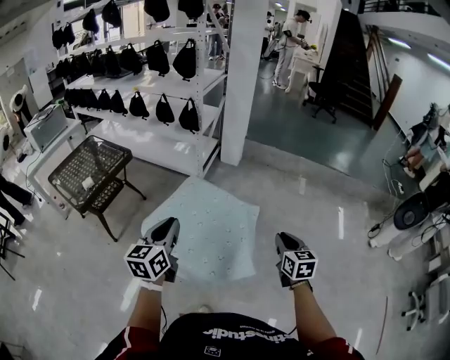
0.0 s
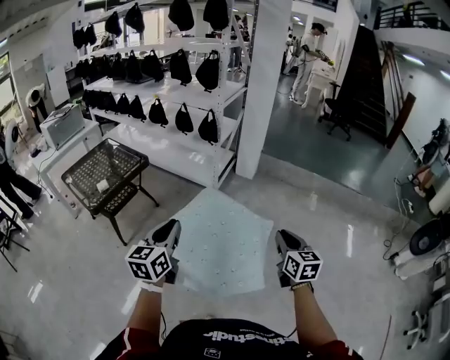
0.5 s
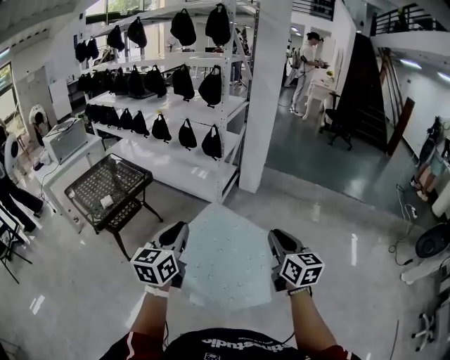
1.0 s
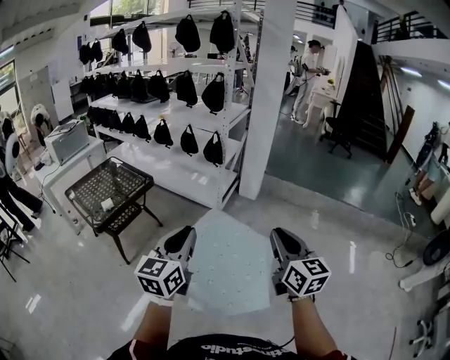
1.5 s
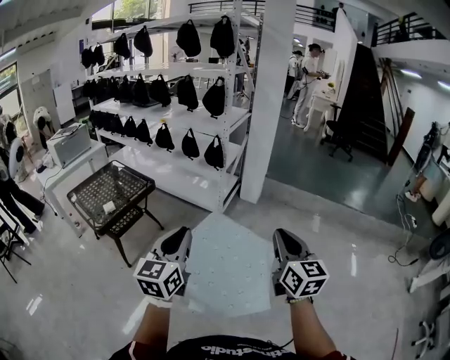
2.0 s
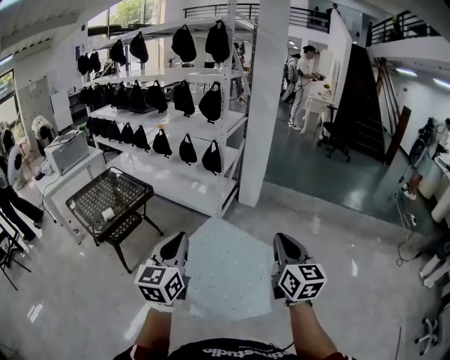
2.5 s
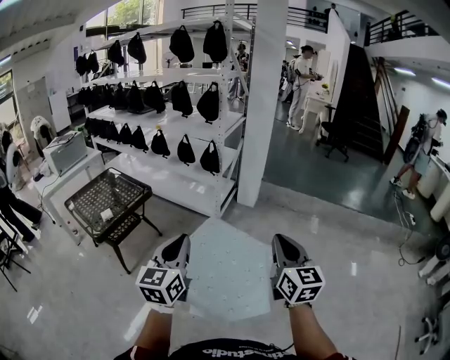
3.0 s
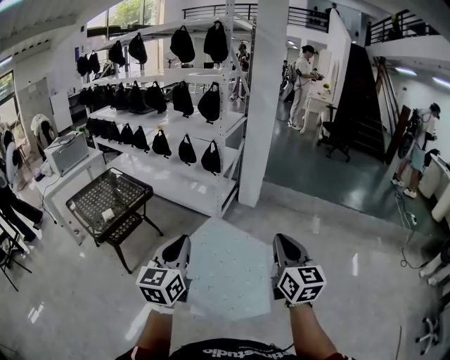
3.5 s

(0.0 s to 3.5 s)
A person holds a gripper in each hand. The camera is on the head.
0.0 s - 2.0 s: The left gripper goes about 10 cm upward and to the left; the right gripper shifts some 25 cm upward and to the left, and changes its angle by roughly 30 degrees.
2.0 s - 3.5 s: Both grippers stay about where they are.

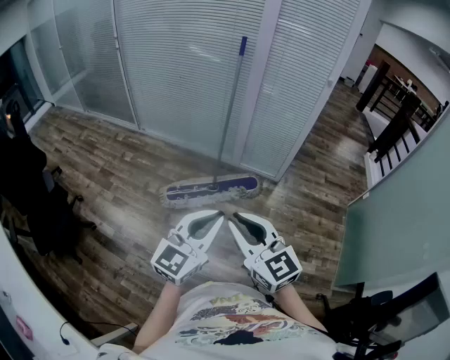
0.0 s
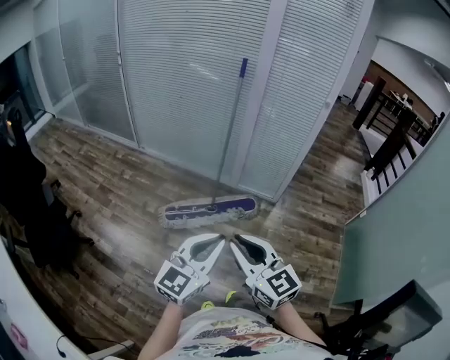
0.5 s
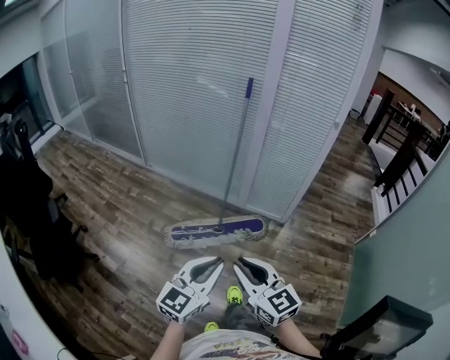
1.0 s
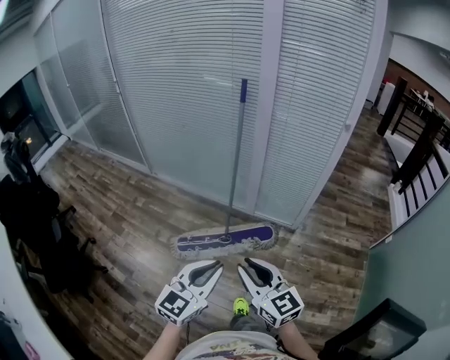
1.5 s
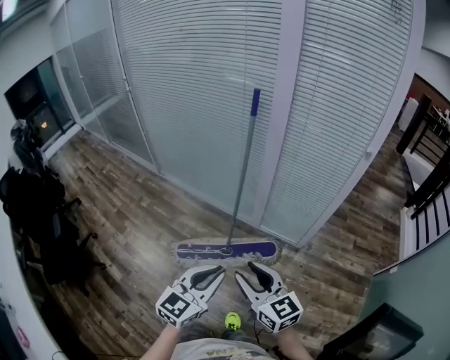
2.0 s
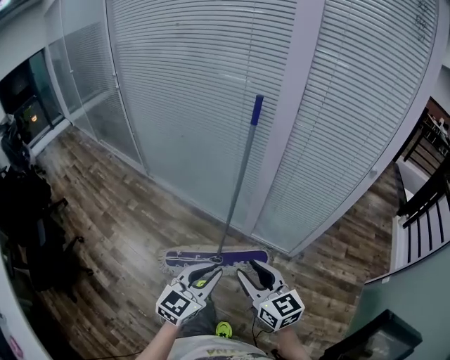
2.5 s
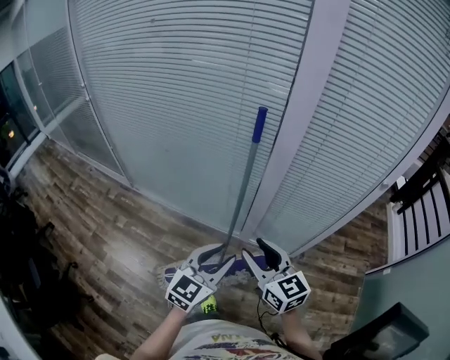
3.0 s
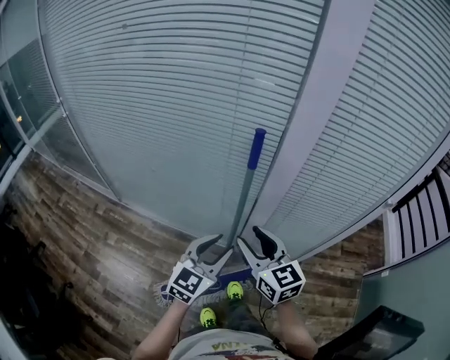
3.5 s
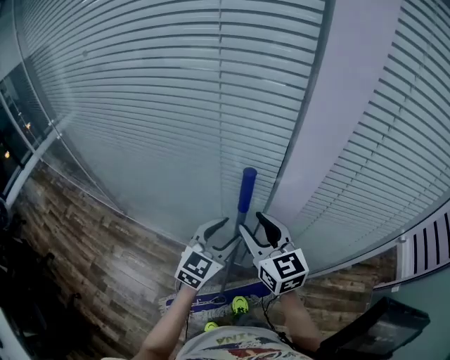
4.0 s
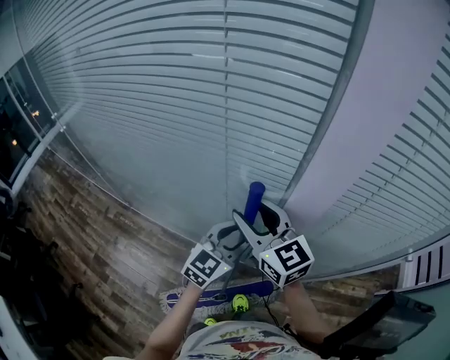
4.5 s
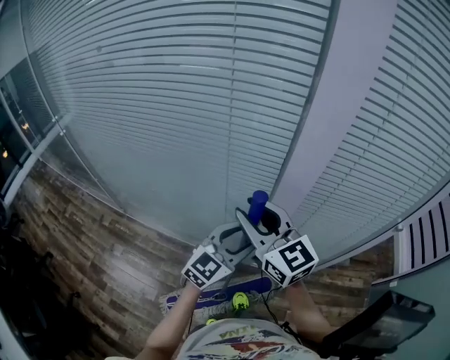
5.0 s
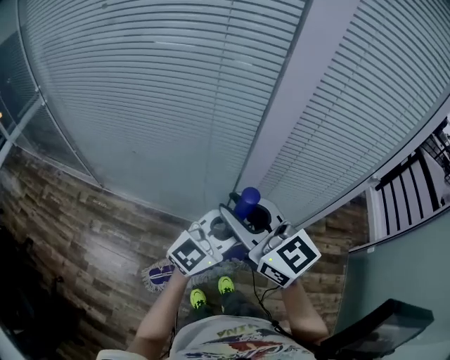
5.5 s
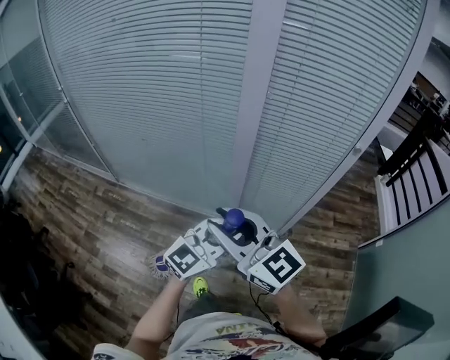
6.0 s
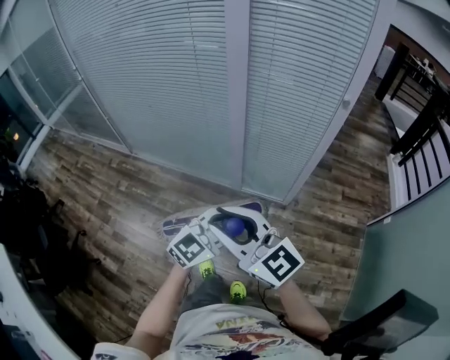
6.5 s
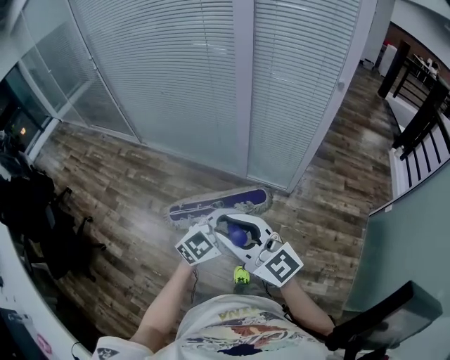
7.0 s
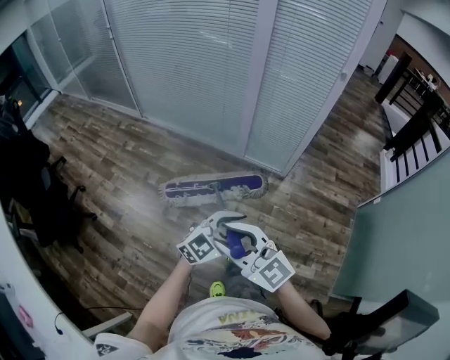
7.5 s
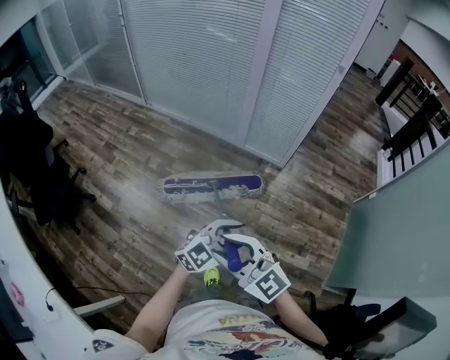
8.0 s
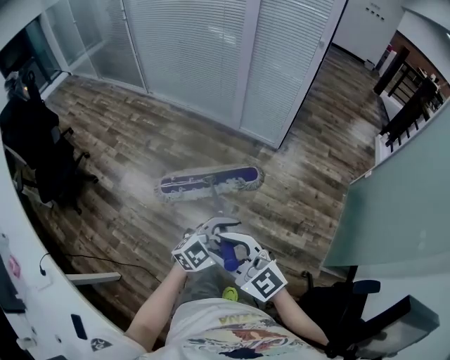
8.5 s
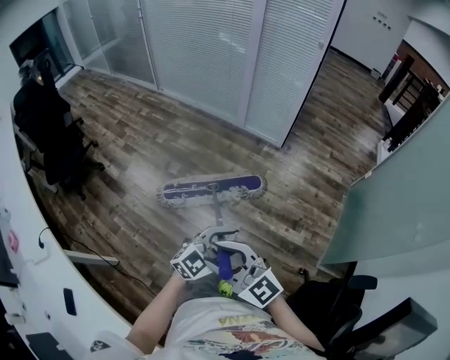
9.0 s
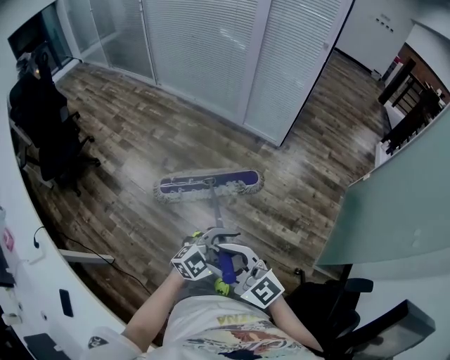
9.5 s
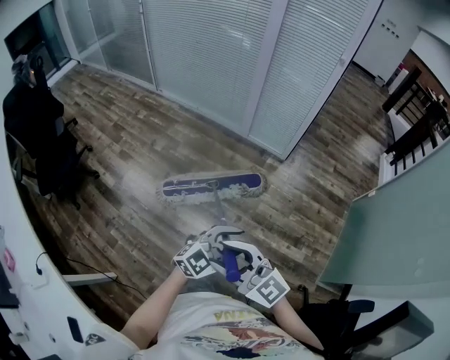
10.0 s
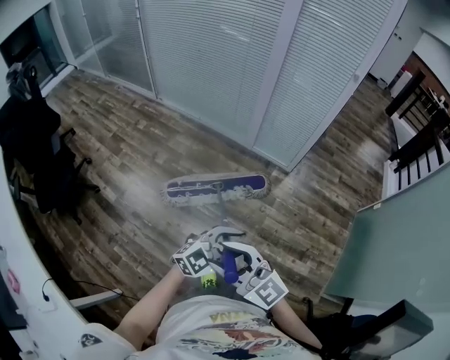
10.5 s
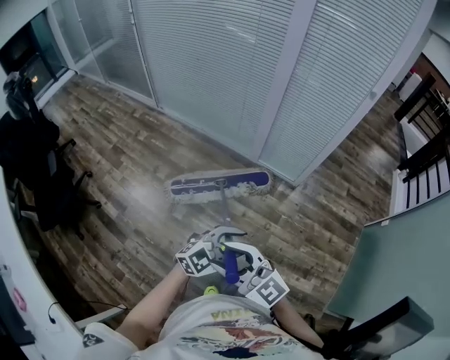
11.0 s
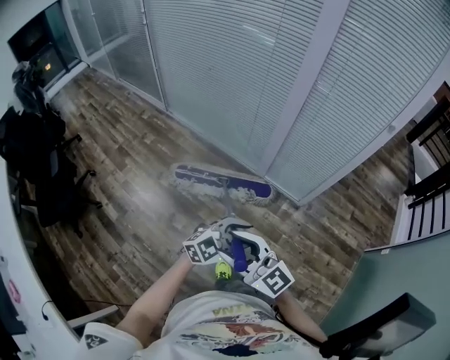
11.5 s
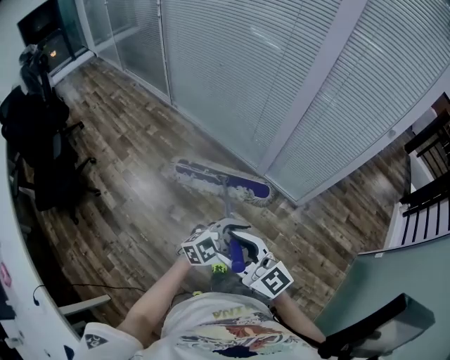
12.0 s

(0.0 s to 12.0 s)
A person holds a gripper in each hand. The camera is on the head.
0.0 s - 2.0 s: Both grippers travel together forward, approximately 35 cm.
2.0 s - 4.0 s: Both grippers are carried forward, some 70 cm. The left gripper opens its fingers.
4.0 s - 6.0 s: Both grippers are carried backward, roughly 40 cm. The right gripper turns by roughly 20 degrees. Meanwhile the left gripper changes its angle by roughly 20 degrees, and closes its fingers.
6.0 s - 8.0 s: The pair of grippers is taken backward, roughly 70 cm. The right gripper changes its angle by some 30 degrees.
10.0 s - 12.0 s: The two grippers travel together, about 40 cm.

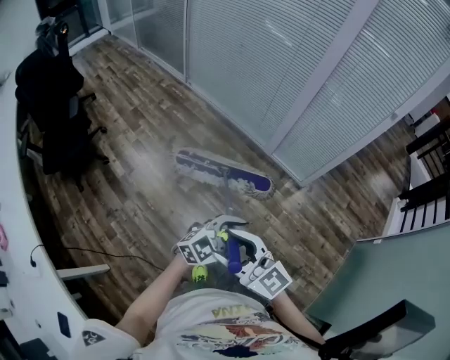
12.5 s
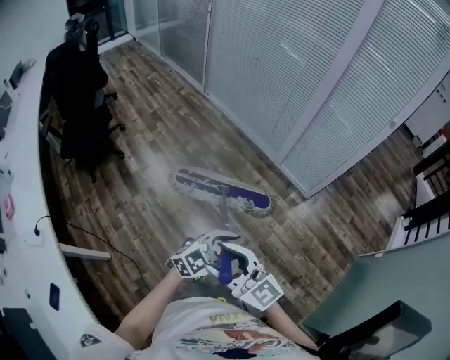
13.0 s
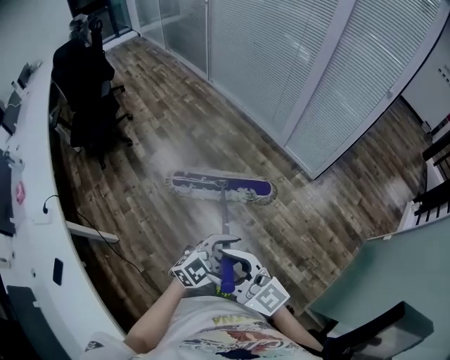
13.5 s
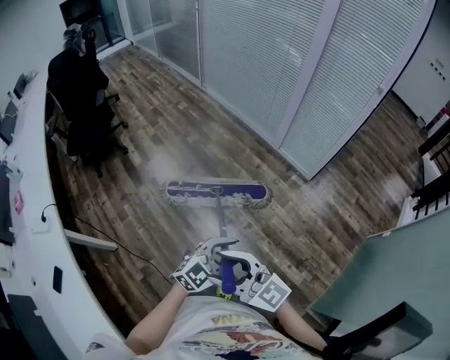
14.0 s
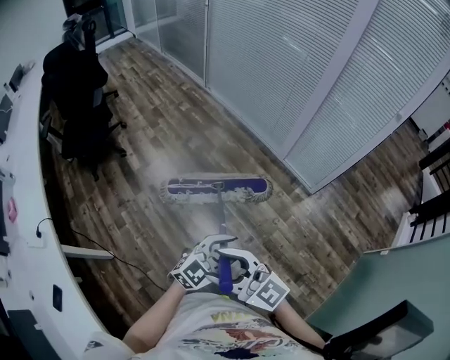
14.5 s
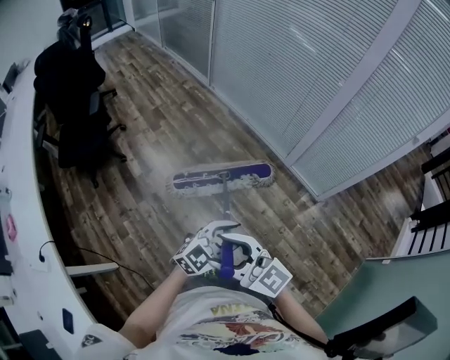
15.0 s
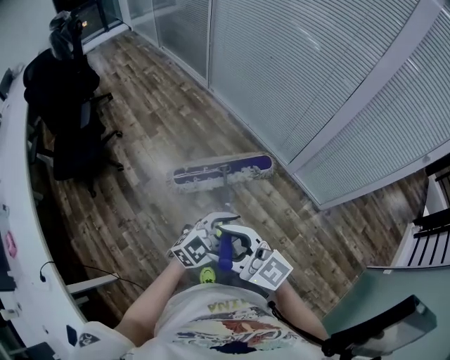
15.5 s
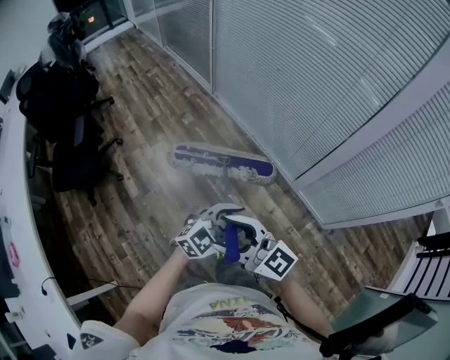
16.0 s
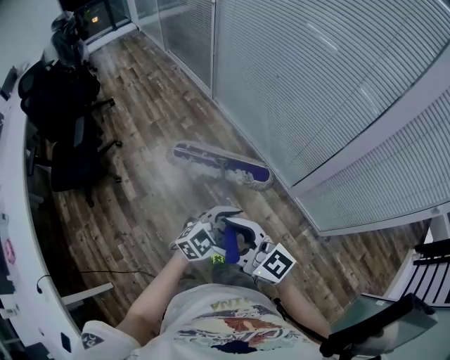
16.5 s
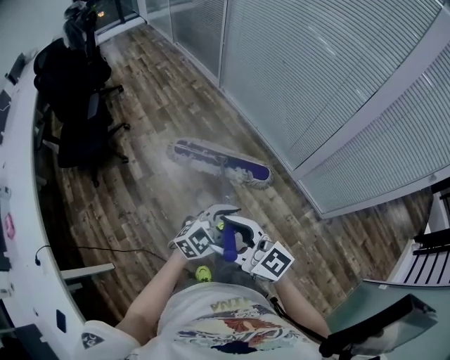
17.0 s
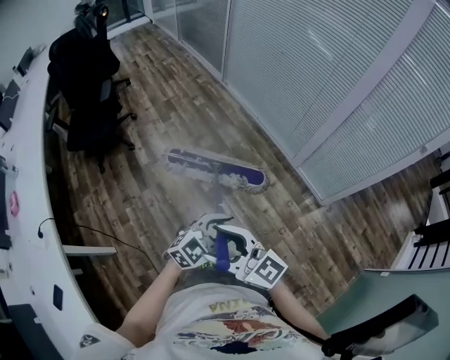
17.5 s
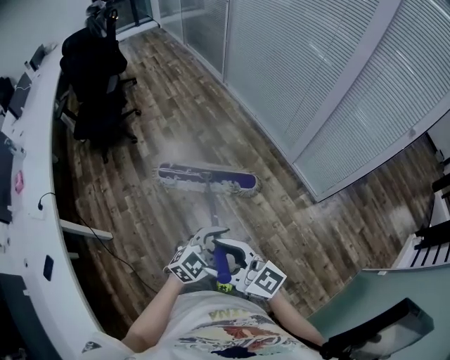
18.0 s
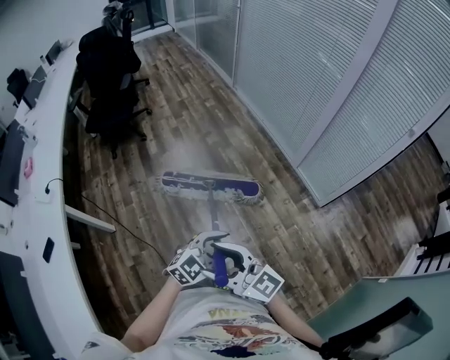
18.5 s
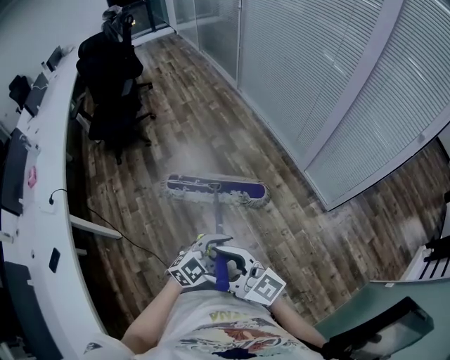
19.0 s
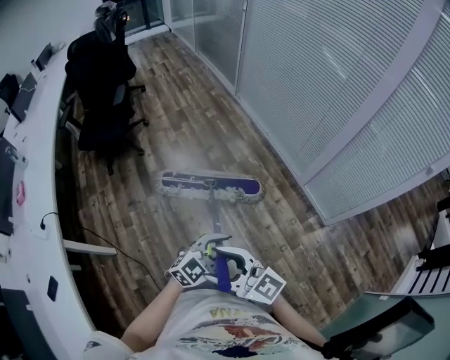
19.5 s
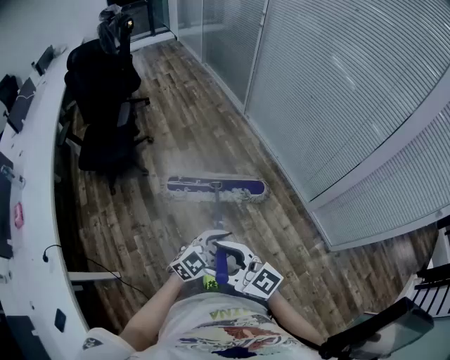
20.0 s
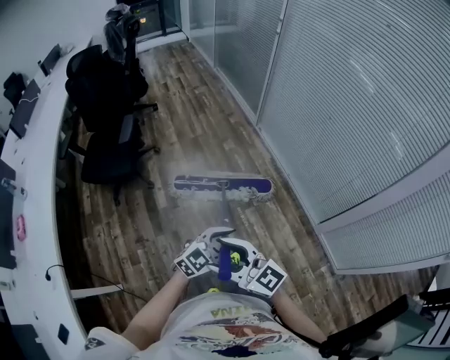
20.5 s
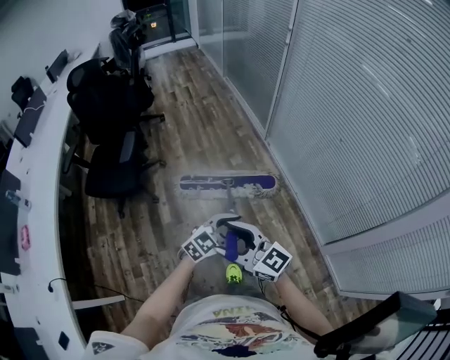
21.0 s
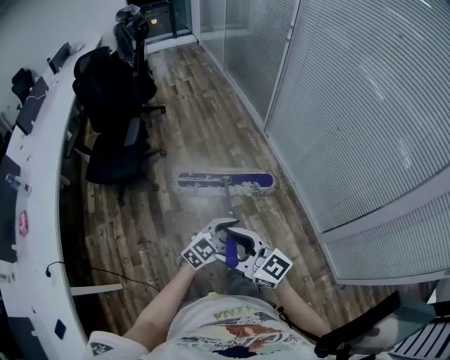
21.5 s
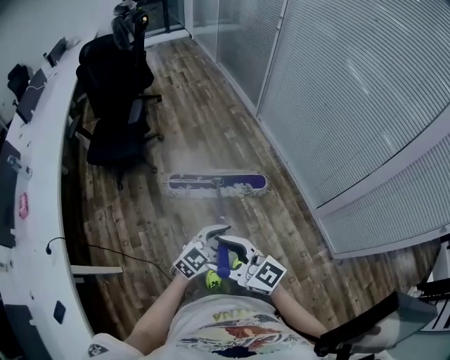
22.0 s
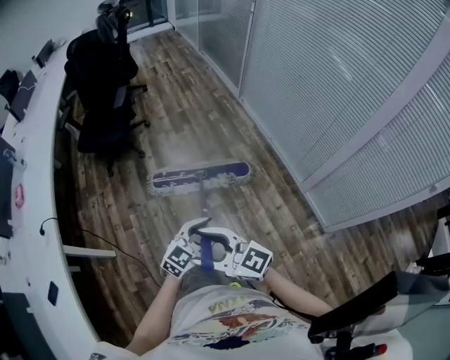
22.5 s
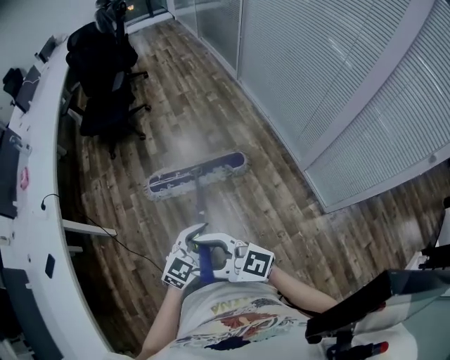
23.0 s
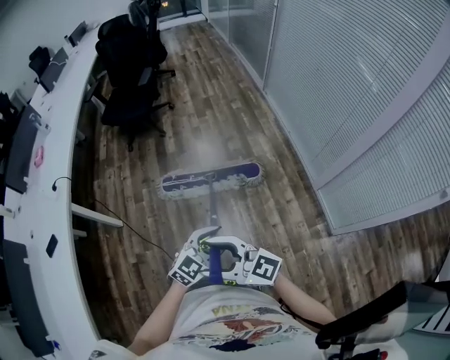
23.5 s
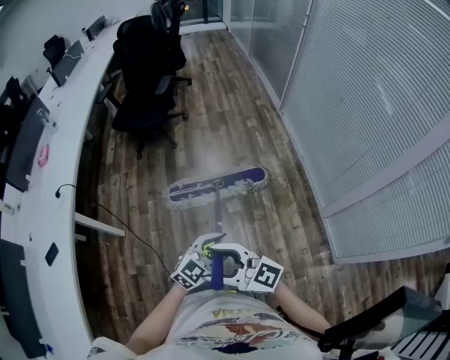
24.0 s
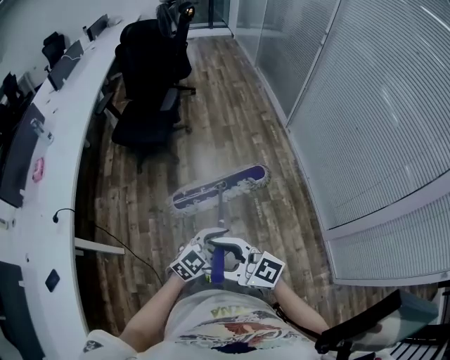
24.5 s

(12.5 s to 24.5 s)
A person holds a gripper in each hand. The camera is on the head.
12.5 s - 14.5 s: Both grippers move backward, roughly 15 cm.
14.5 s - 16.5 s: The two grippers travel together, about 60 cm.
16.5 s - 18.5 s: The pair of grippers is taken backward, about 60 cm.
18.5 s - 20.5 s: The two grippers travel together, forward, roughly 70 cm.
20.5 s - 22.5 s: The two grippers go roughly 30 cm backward.
22.5 s - 24.5 s: The right gripper changes place by about 15 cm. The left gripper moves roughly 20 cm.
